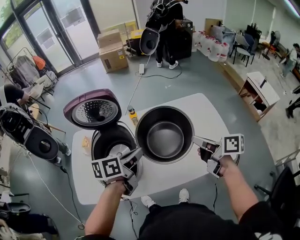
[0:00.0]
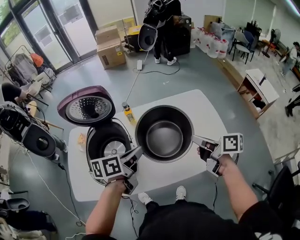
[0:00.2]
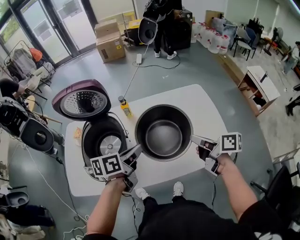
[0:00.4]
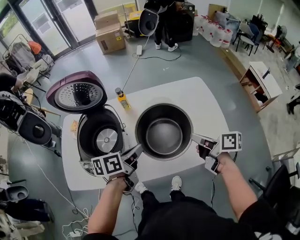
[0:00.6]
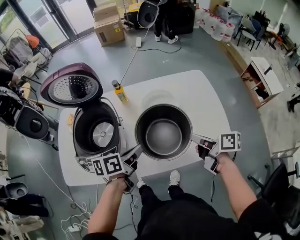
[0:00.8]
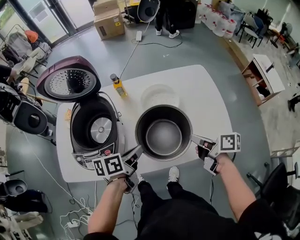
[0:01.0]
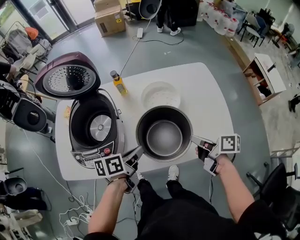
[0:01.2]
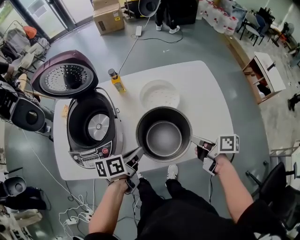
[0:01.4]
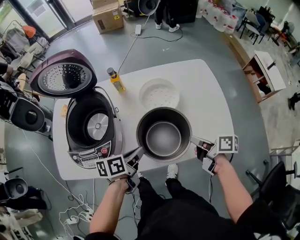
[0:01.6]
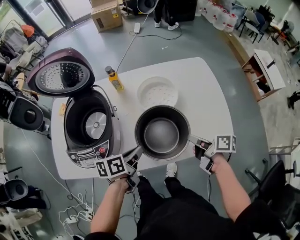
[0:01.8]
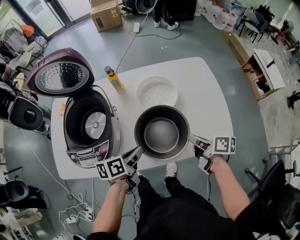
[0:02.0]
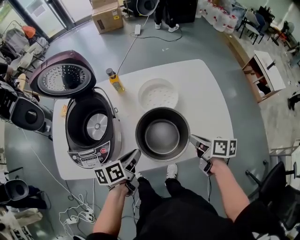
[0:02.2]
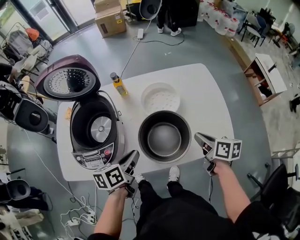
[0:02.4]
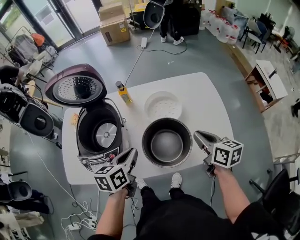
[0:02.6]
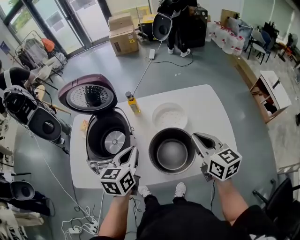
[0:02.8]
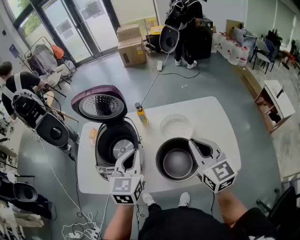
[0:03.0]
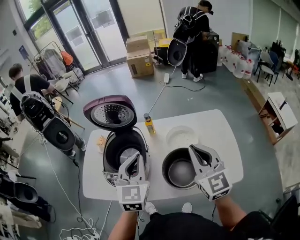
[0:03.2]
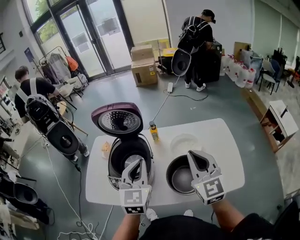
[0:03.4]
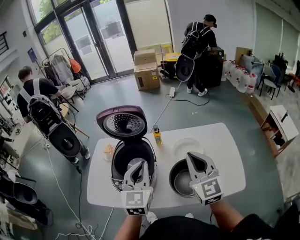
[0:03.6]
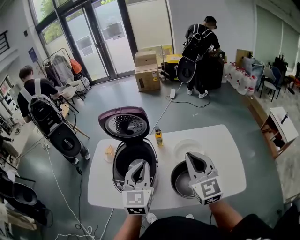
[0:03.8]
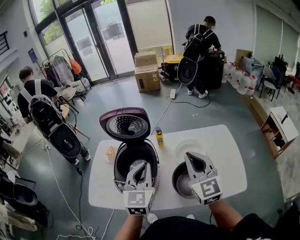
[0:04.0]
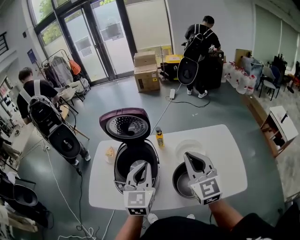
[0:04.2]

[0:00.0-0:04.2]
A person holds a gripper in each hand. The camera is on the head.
0:00.0 to 0:01.4: The right gripper moves downward, some 15 cm, while the left gripper goes about 20 cm downward and backward.
0:01.4 to 0:02.8: Both grippers travel together upward, roughly 15 cm. The right gripper twists roughly 50 degrees counterclockwise, seen from behind. The left gripper turns by approximately 40 degrees.
0:02.8 to 0:04.2: The right gripper moves to the left and upward, roughly 20 cm, and turns by about 30 degrees. Meanwhile the left gripper goes roughly 15 cm upward and to the left, and rotates approximately 30 degrees.

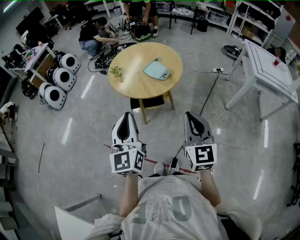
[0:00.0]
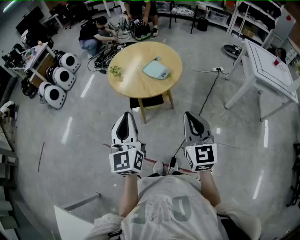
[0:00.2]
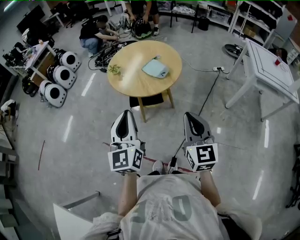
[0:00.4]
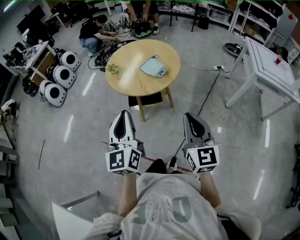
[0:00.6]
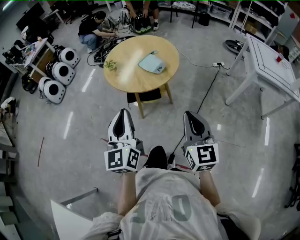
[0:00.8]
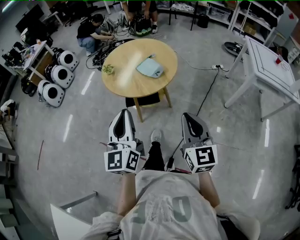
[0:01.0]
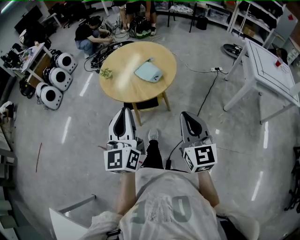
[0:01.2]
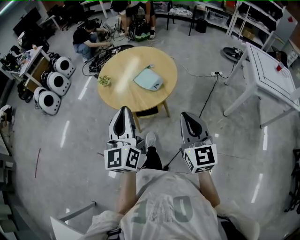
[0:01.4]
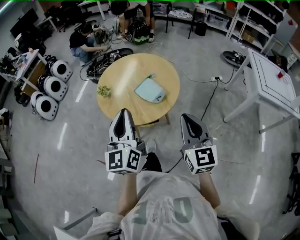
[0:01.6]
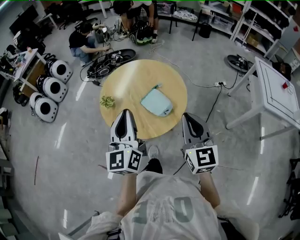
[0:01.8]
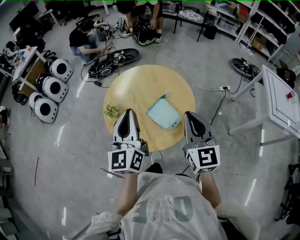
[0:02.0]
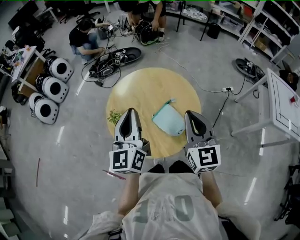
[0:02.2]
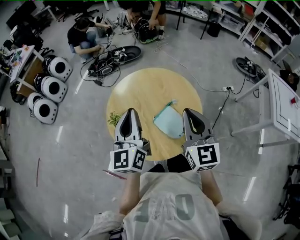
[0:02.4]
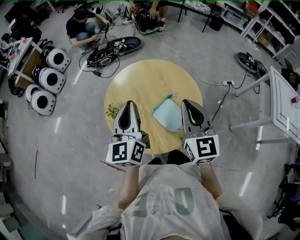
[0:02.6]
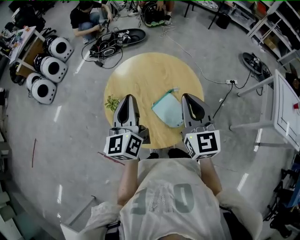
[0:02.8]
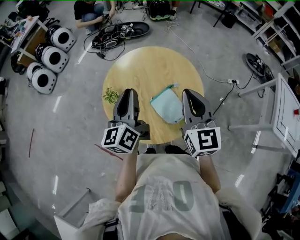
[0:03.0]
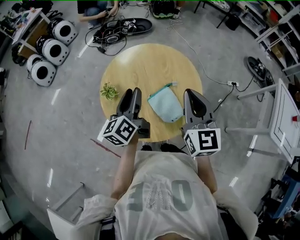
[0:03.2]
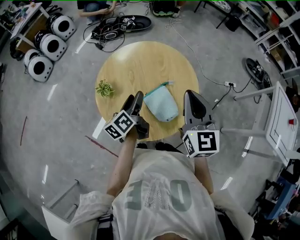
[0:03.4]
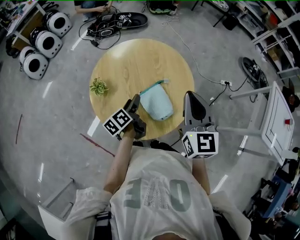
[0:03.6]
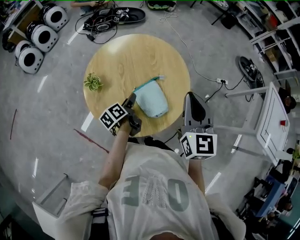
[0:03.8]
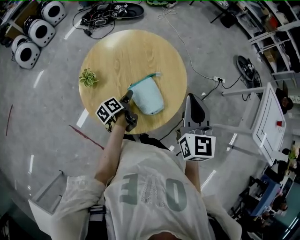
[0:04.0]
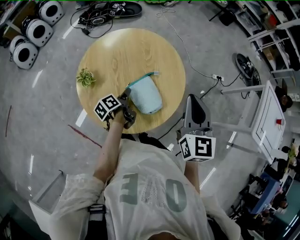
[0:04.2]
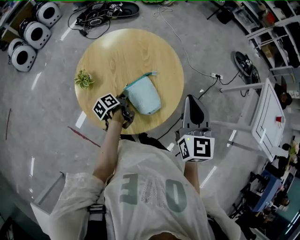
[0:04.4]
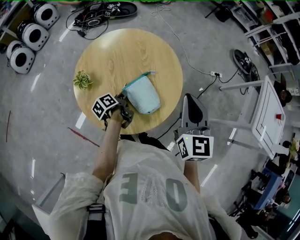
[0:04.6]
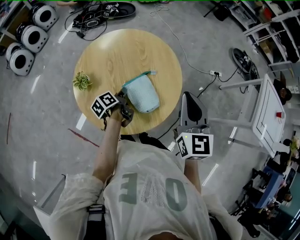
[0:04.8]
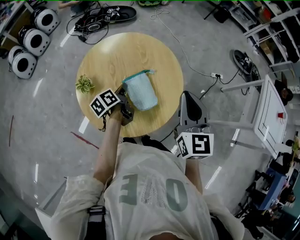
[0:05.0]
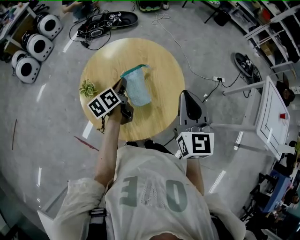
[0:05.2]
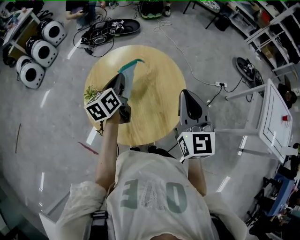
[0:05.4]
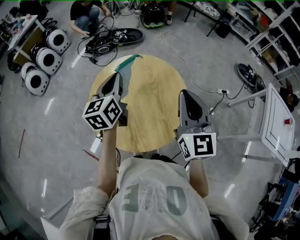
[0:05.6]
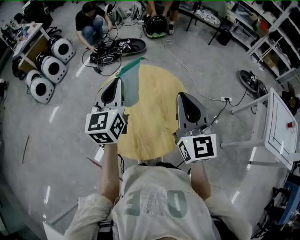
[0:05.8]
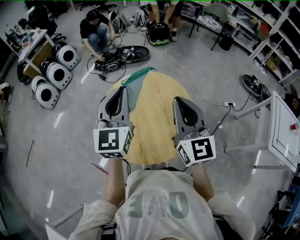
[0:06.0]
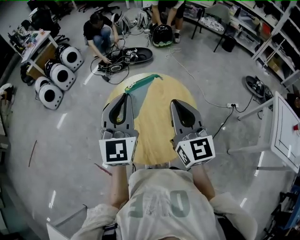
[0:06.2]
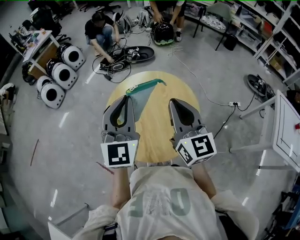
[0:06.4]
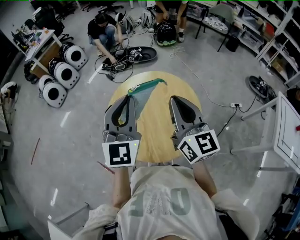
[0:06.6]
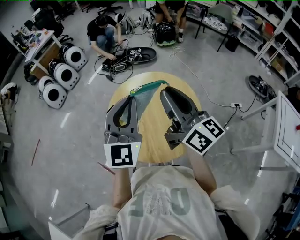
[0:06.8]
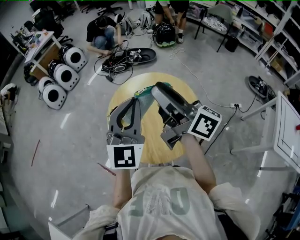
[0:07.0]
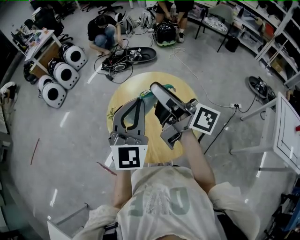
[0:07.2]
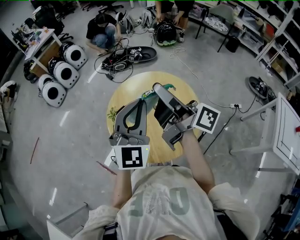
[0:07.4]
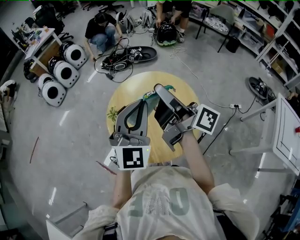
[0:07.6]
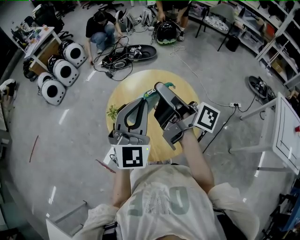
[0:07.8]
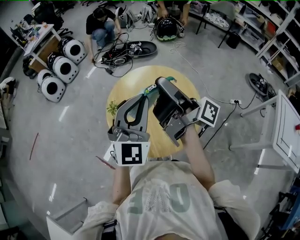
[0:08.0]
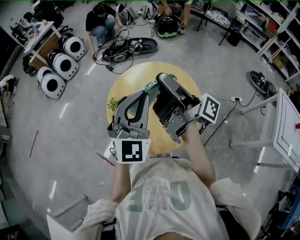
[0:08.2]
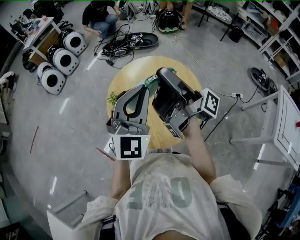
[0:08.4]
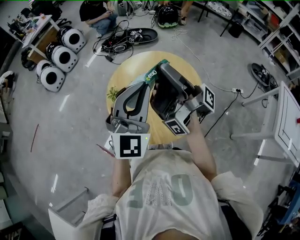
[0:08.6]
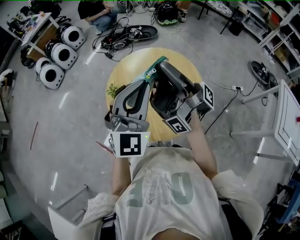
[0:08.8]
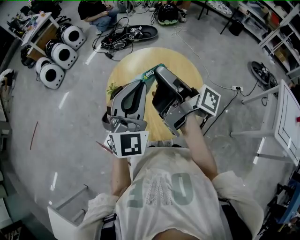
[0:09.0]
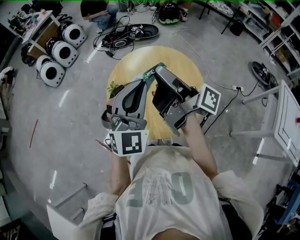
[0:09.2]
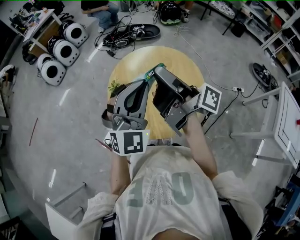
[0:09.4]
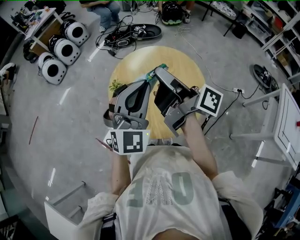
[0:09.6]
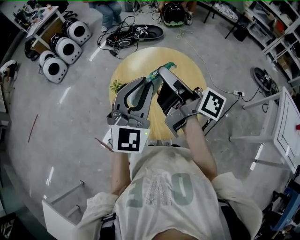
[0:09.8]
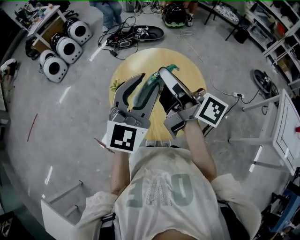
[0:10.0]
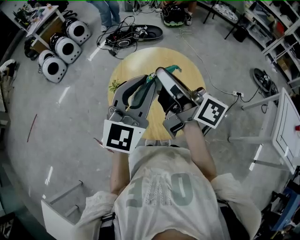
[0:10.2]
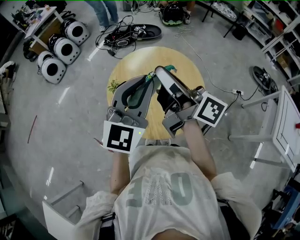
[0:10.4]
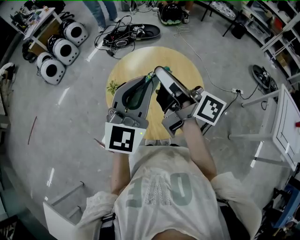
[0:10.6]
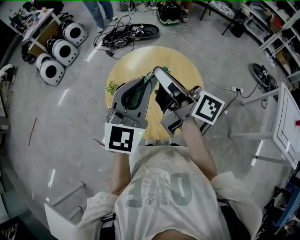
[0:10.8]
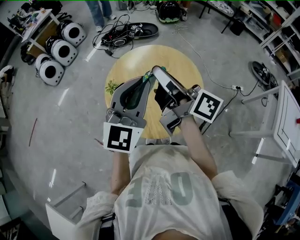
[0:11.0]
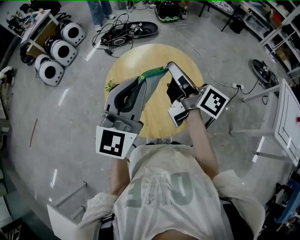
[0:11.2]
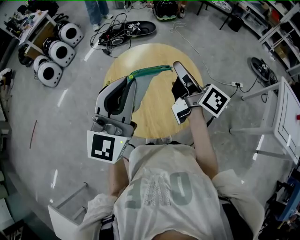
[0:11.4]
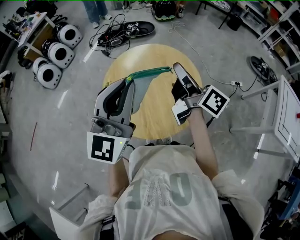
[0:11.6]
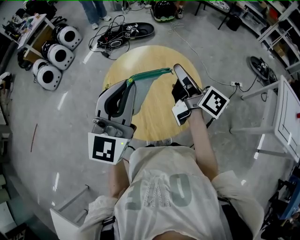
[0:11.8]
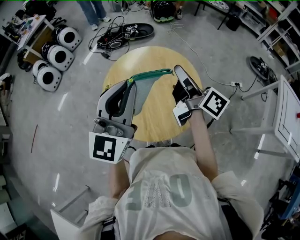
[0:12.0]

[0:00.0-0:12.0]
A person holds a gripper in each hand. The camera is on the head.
0:00.0 to 0:01.6: The two grippers go about 20 cm forward.
0:01.6 to 0:03.0: Both grippers move forward, about 30 cm. The left gripper swivels some 20 degrees.
0:03.0 to 0:04.4: The right gripper goes about 10 cm to the right. The left gripper heads downward, covering about 30 cm, angles its fingers downward, by approximately 40 degrees, and opens, then closes again.
0:04.4 to 0:06.0: The left gripper travels upward by approximately 40 cm, and rolls clockwise, seen from behind, by approximately 80 degrees. Meanwhile the right gripper travels upward and to the left by about 15 cm, and turns by roughly 20 degrees.
0:06.0 to 0:07.6: The right gripper goes approximately 5 cm to the left, rolls clockwise, seen from behind, by about 80 degrees, and opens, then closes again; the left gripper moves backward, about 5 cm, and changes its angle by about 30 degrees.
0:09.0 to 0:10.4: The left gripper rotates approximately 20 degrees; the right gripper rotates roughly 30 degrees.
0:10.4 to 0:12.0: The right gripper moves to the right and downward, approximately 15 cm, and changes its angle by approximately 20 degrees.

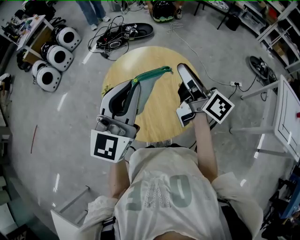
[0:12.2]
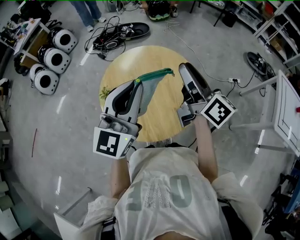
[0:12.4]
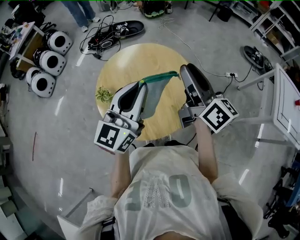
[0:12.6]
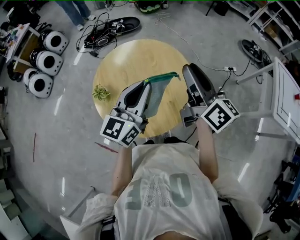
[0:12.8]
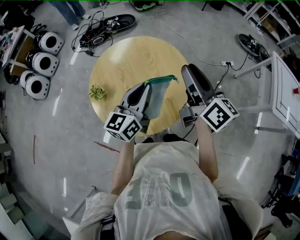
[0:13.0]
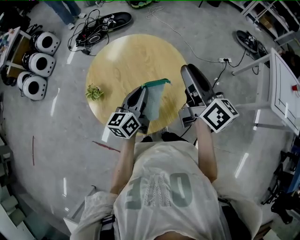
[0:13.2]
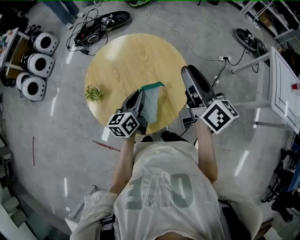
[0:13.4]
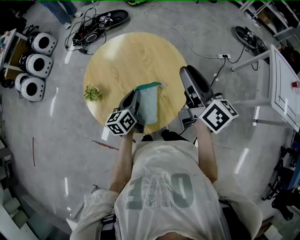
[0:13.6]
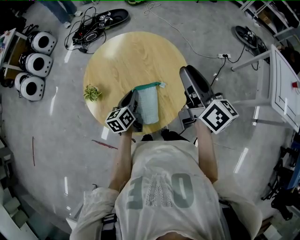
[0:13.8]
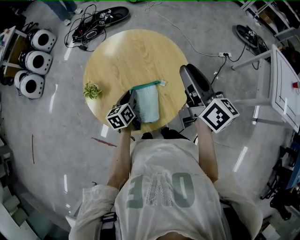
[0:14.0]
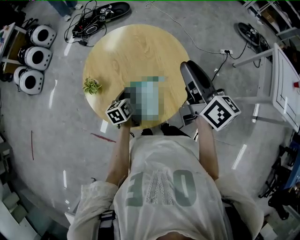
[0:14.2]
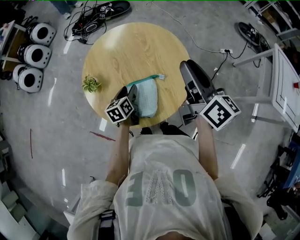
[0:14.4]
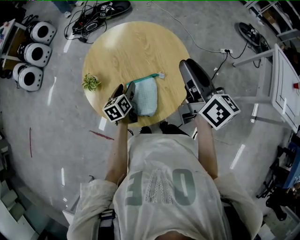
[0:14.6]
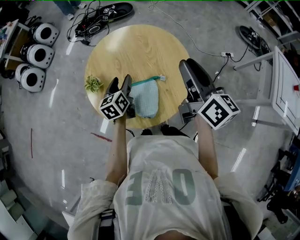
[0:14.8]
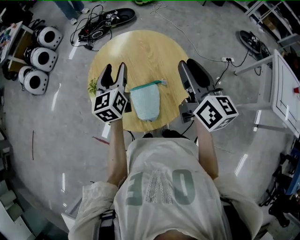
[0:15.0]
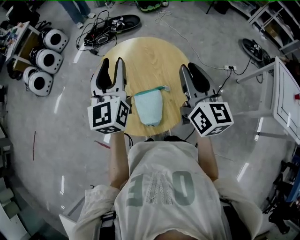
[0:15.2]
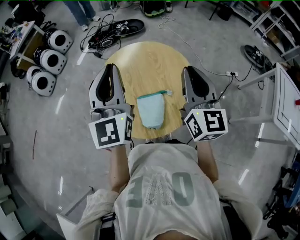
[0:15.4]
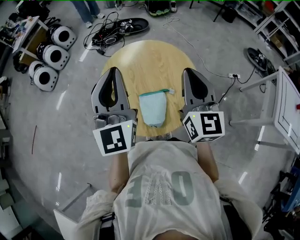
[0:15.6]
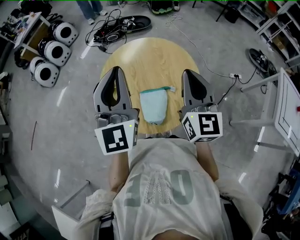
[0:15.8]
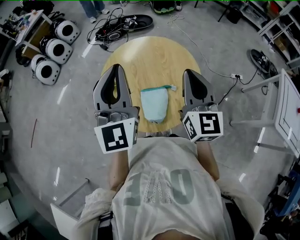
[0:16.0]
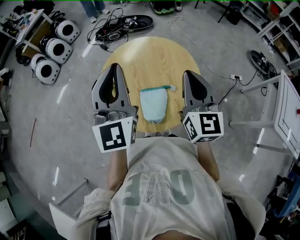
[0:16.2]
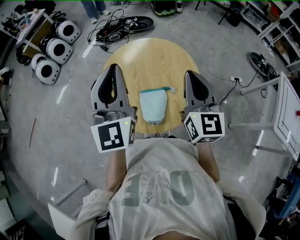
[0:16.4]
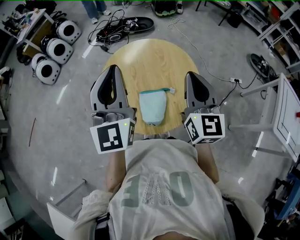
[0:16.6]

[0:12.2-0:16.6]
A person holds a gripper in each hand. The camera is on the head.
0:12.2 to 0:13.6: The left gripper moves downward, approximately 30 cm, and rolls counterclockwise, seen from behind, by some 50 degrees. Meanwhile the right gripper travels to the right by approximately 10 cm, and rotates about 20 degrees.
0:13.6 to 0:15.2: The right gripper swivels about 20 degrees; the left gripper moves upward, approximately 25 cm, swivels about 40 degrees, and opens.
0:15.2 to 0:16.6: The left gripper heads backward and upward, covering roughly 10 cm, and closes.

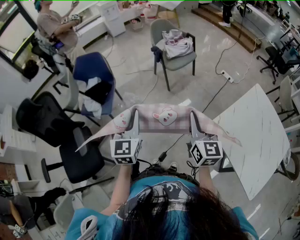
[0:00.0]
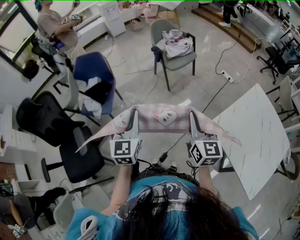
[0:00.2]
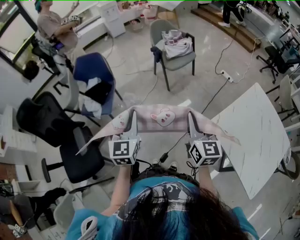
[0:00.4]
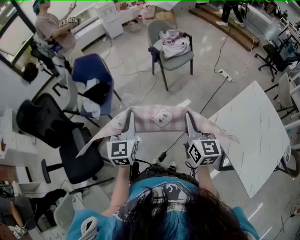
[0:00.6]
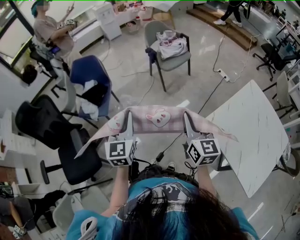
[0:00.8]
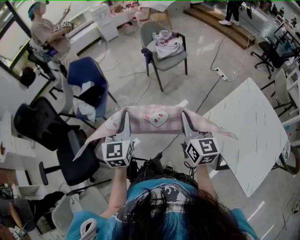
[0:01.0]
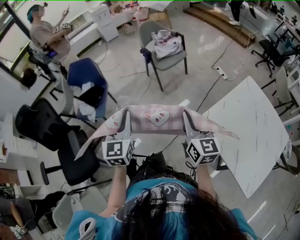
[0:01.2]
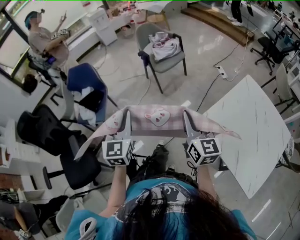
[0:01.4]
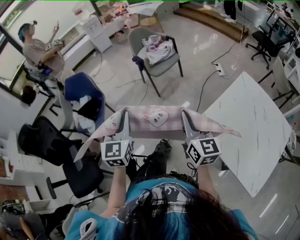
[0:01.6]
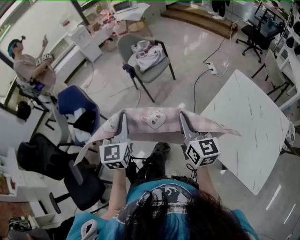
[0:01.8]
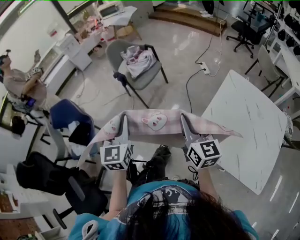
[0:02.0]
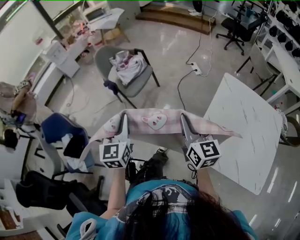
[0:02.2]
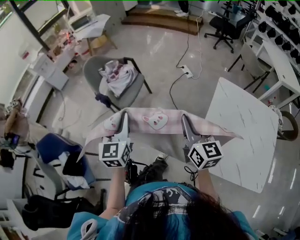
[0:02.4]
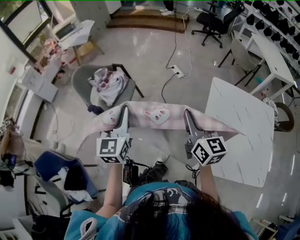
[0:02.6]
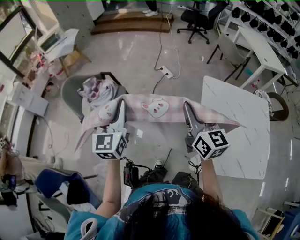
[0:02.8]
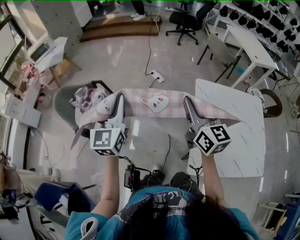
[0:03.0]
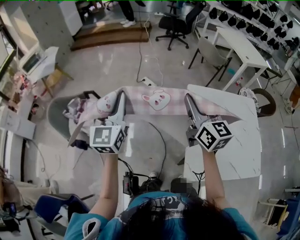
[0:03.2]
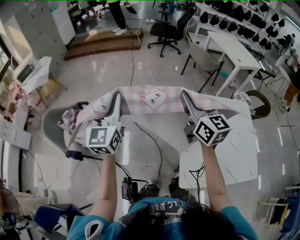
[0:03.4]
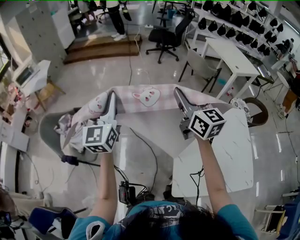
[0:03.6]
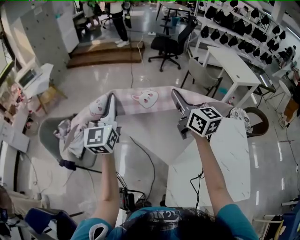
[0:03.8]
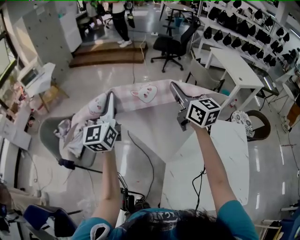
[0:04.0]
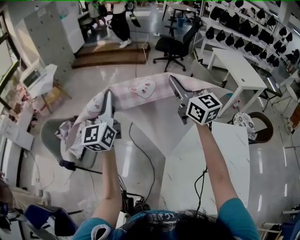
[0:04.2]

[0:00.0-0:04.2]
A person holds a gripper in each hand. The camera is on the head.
0:00.0 to 0:01.4: The grippers both shift to the right by about 5 cm.
0:01.4 to 0:02.8: The right gripper ends up about 35 cm from where it was, and changes its angle by roughly 40 degrees; the left gripper moves about 50 cm, and changes its angle by approximately 40 degrees.
0:02.8 to 0:04.2: The grippers both shift forward, to the right and upward by approximately 30 cm. The left gripper changes its angle by about 20 degrees.
